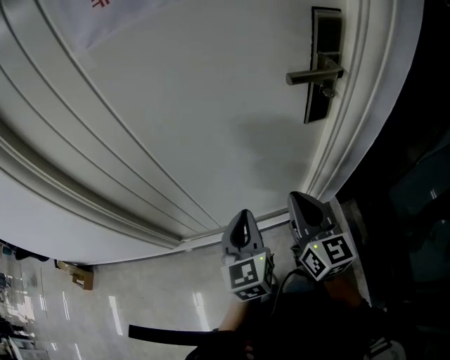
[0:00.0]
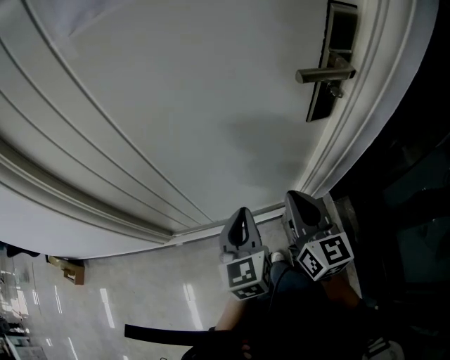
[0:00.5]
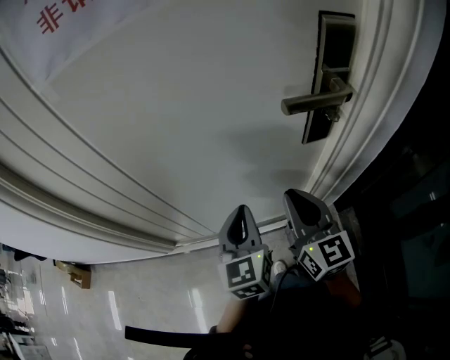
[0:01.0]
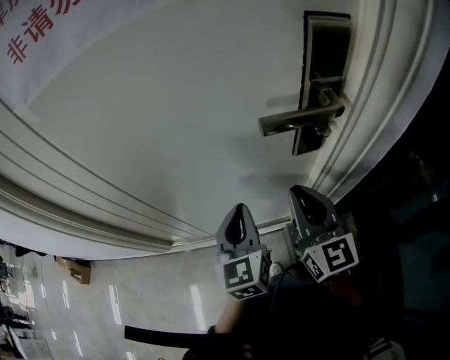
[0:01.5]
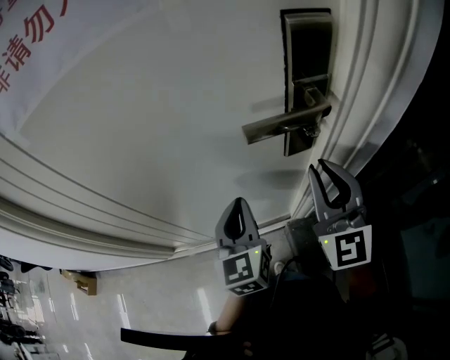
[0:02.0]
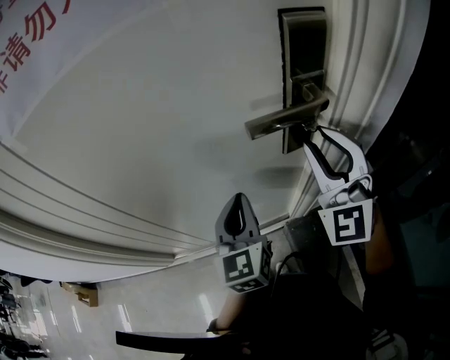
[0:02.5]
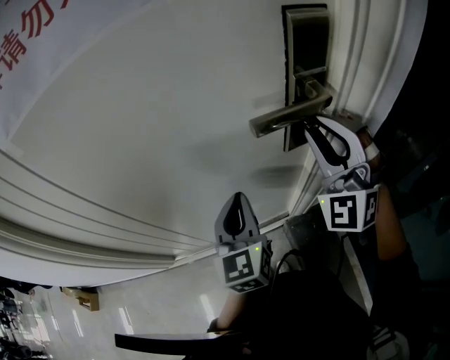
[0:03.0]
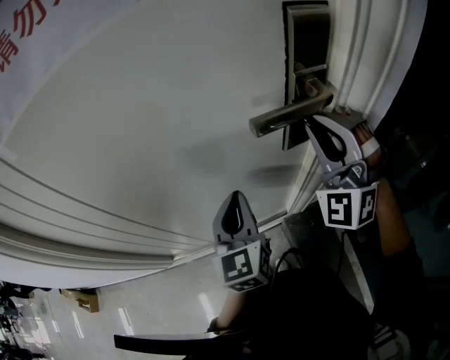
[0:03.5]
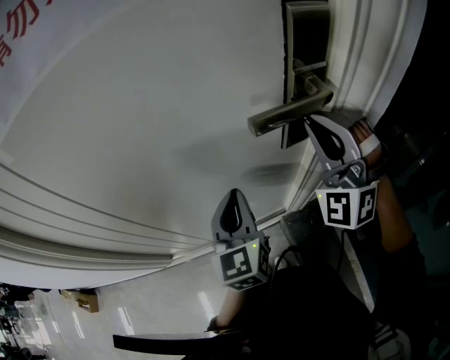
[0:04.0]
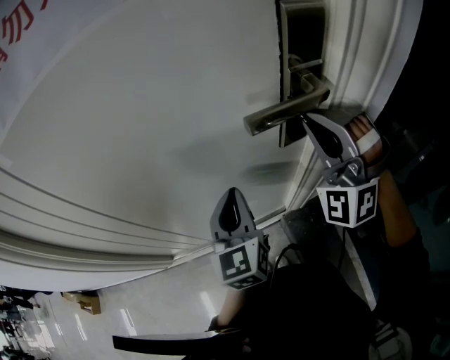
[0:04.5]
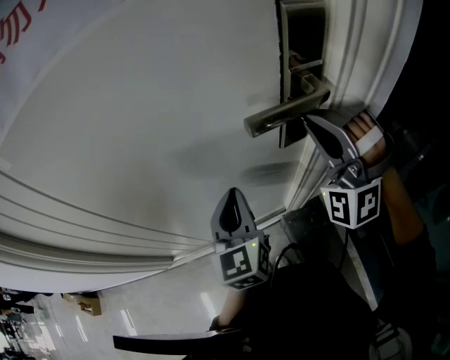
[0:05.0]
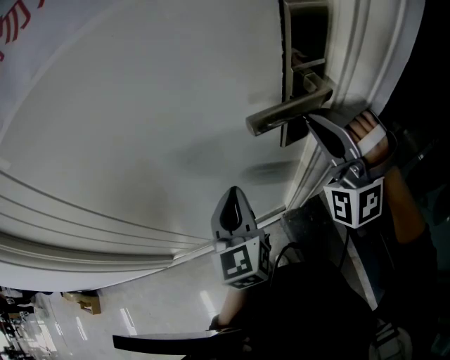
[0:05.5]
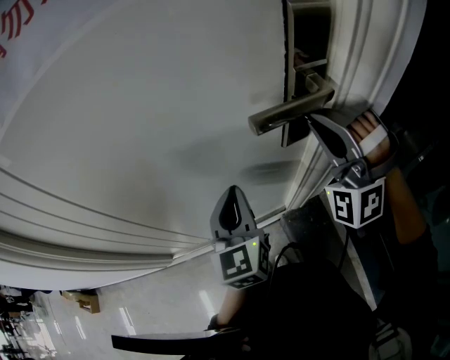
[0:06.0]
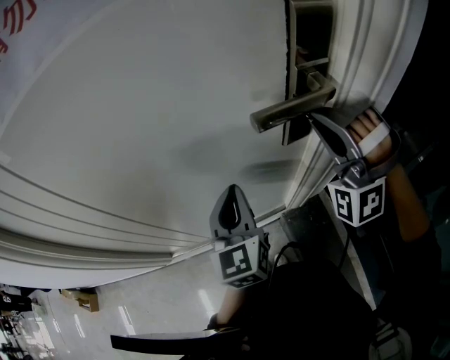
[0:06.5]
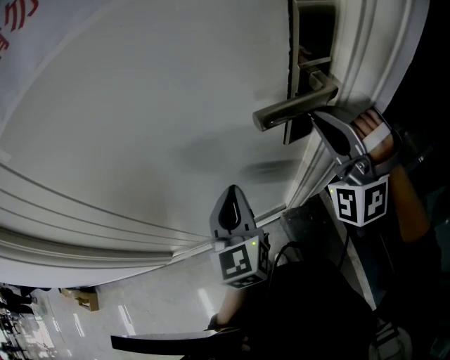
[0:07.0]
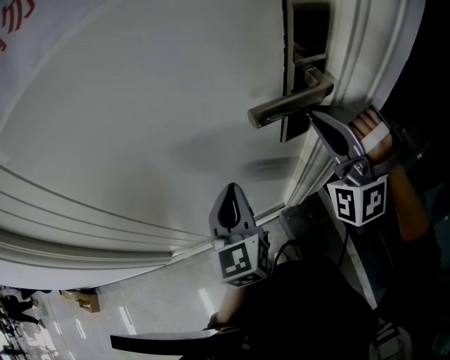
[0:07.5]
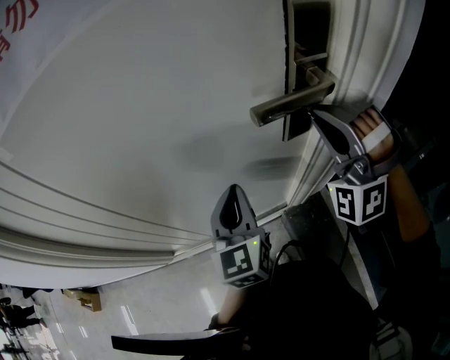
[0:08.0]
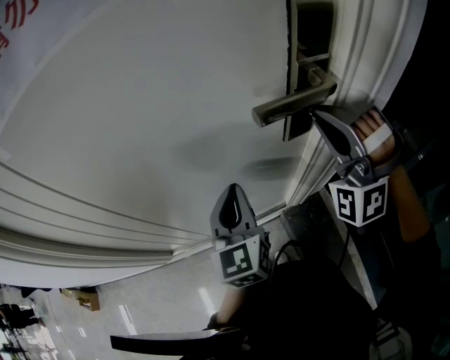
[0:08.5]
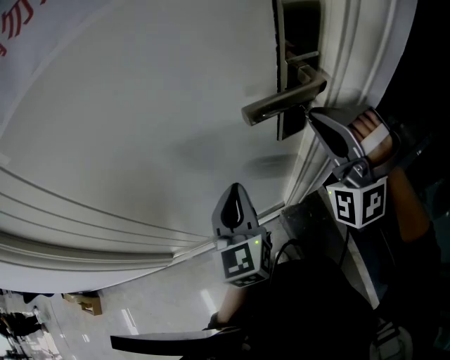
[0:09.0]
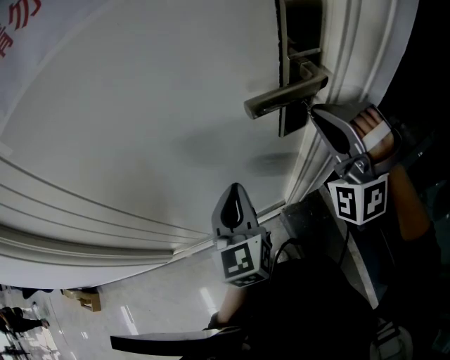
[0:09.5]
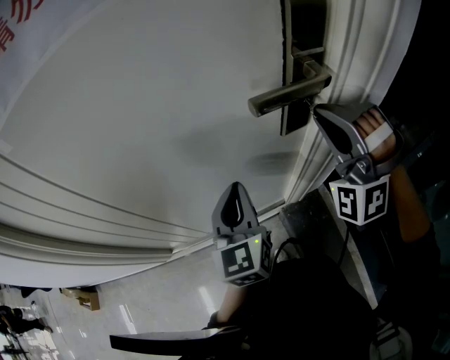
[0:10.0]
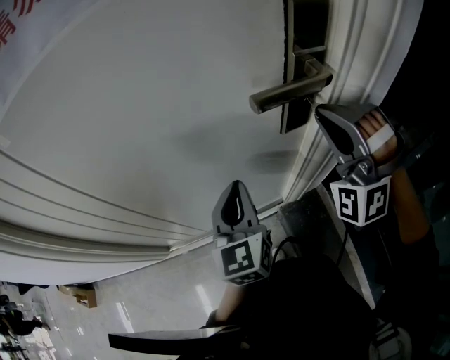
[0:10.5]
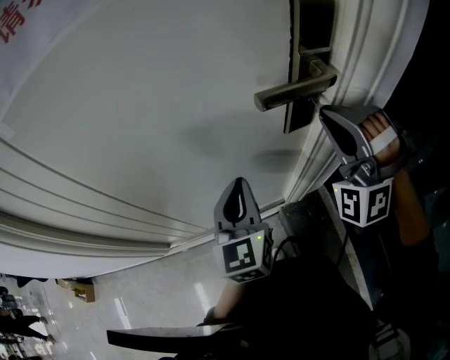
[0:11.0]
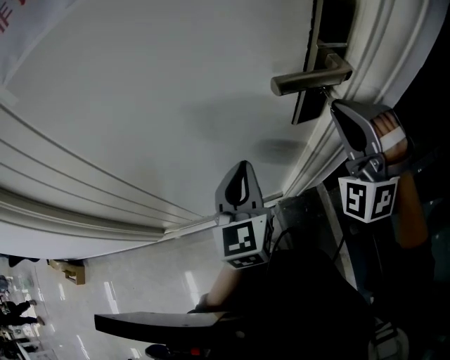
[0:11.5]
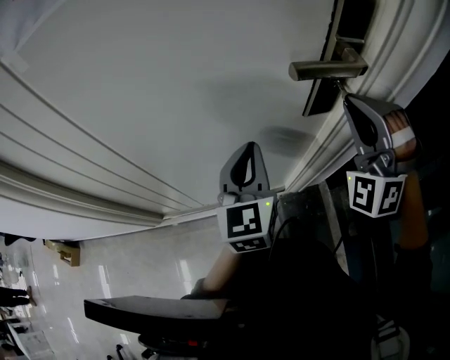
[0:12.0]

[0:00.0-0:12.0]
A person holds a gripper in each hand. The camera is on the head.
0:00.0 to 0:02.0: The left gripper goes some 15 cm forward and to the right. Meanwhile the right gripper travels to the right, forward and upward by approximately 20 cm, and swivels some 30 degrees.
0:02.0 to 0:04.0: The right gripper moves forward, about 5 cm, and twists roughly 60 degrees counterclockwise, seen from behind.
0:04.0 to 0:06.0: The grippers move only a little.
0:06.0 to 0:08.0: The grippers move only a little.
0:08.0 to 0:10.0: The two grippers keep their place.
0:10.0 to 0:12.0: The grippers make only small movements.

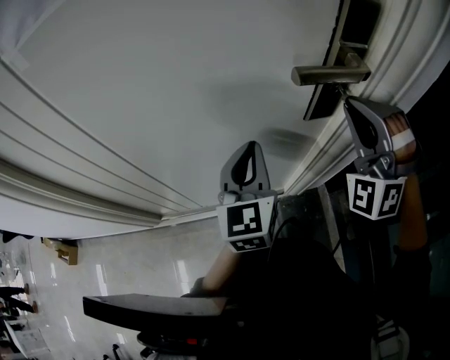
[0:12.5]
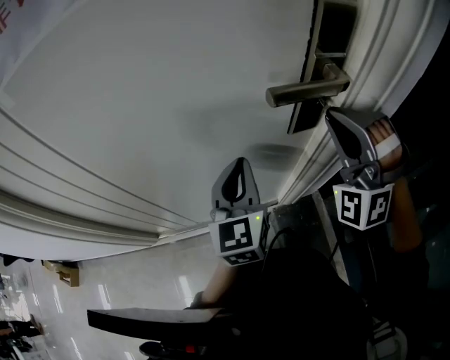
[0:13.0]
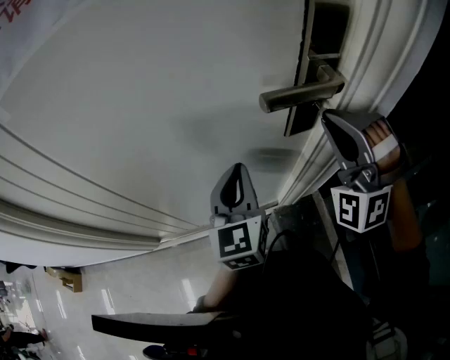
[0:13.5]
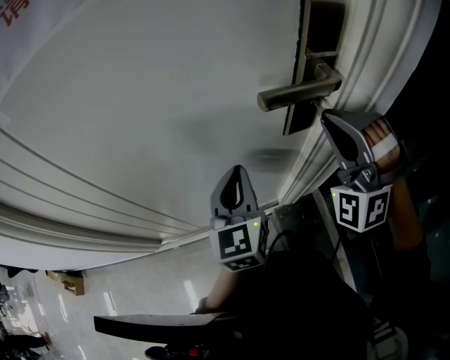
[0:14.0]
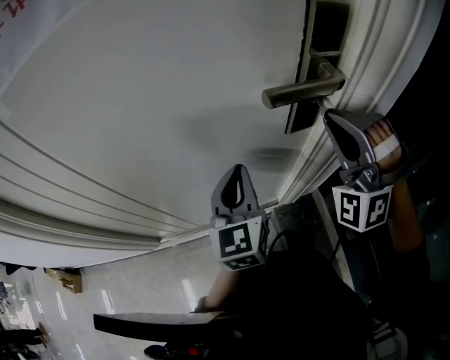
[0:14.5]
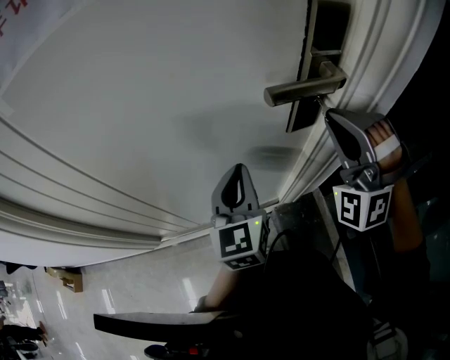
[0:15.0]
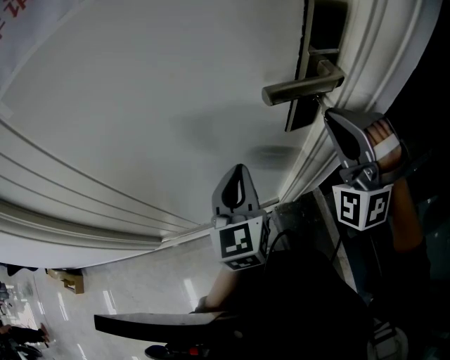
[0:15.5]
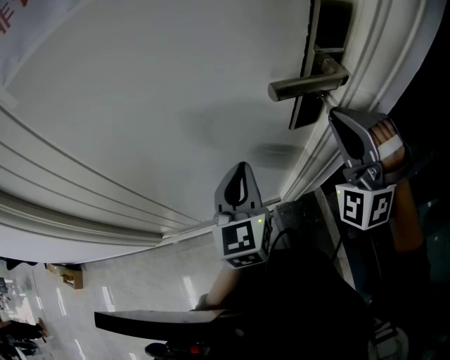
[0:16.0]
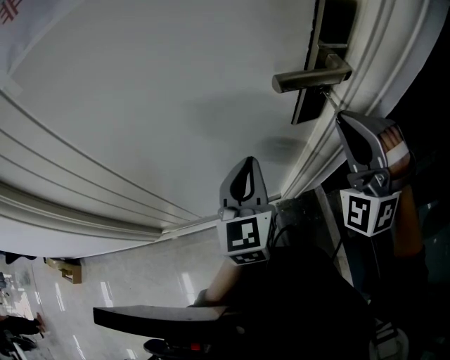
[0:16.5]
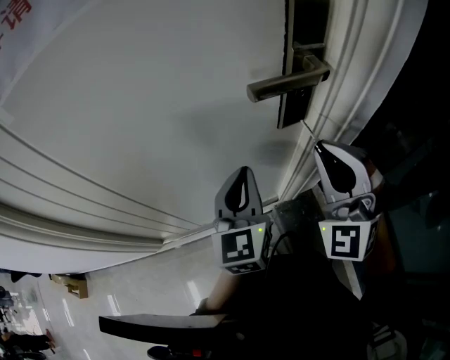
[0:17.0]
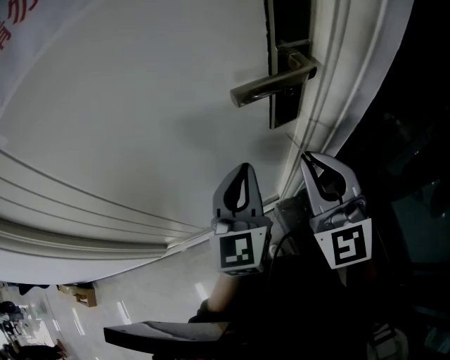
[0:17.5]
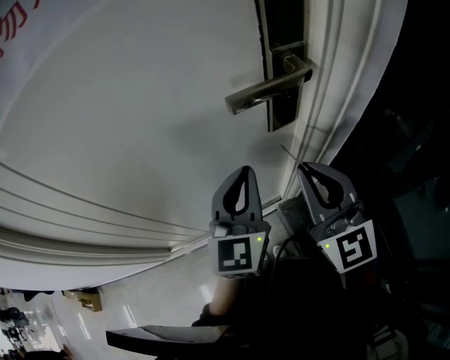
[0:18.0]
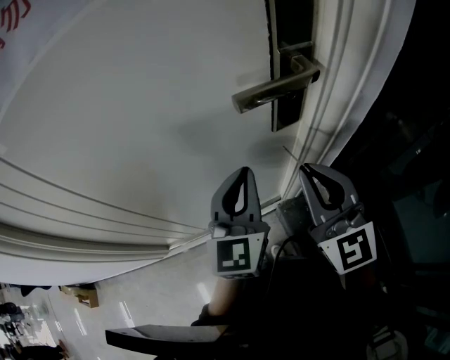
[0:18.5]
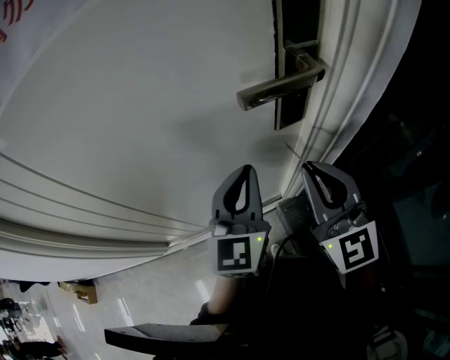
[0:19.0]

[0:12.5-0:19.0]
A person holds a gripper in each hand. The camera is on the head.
0:12.5 to 0:14.5: The grippers move only a little.
0:14.5 to 0:17.0: The right gripper goes roughly 5 cm backward, and rotates some 30 degrees.
0:17.0 to 0:19.0: The right gripper rotates around the line of its fingers by approximately 40 degrees, clockwise from behind.

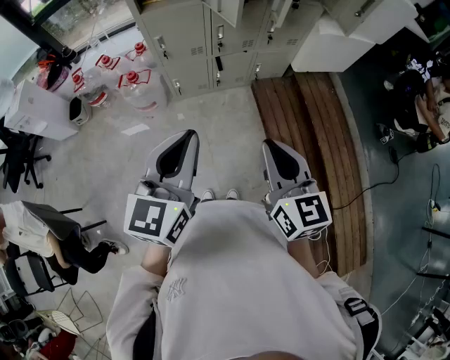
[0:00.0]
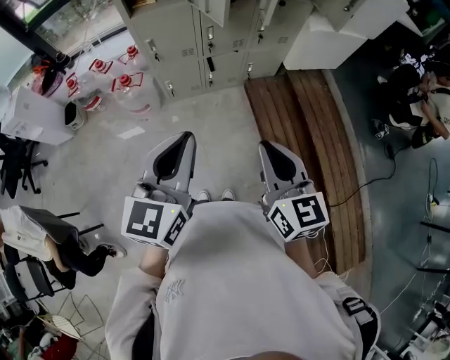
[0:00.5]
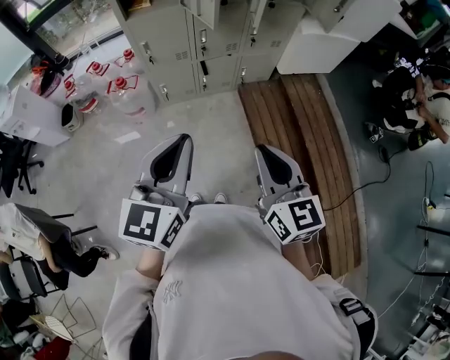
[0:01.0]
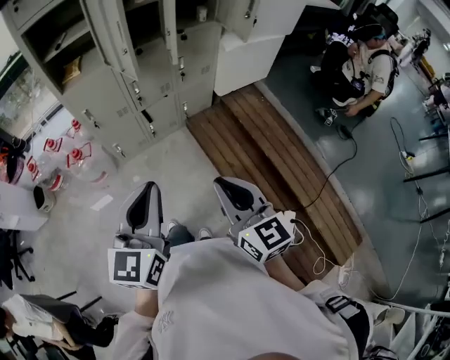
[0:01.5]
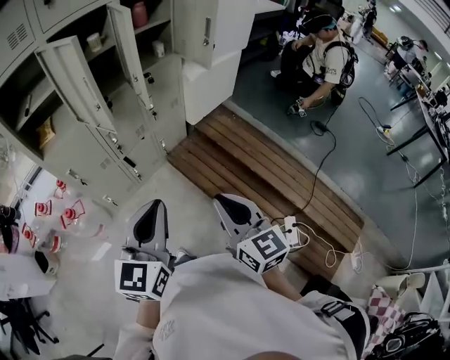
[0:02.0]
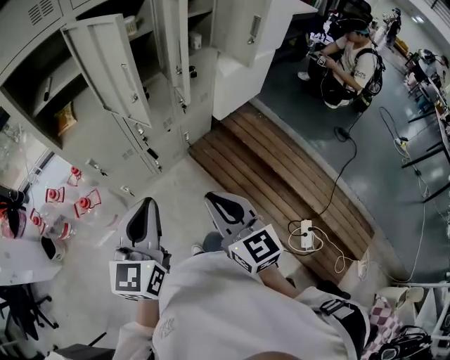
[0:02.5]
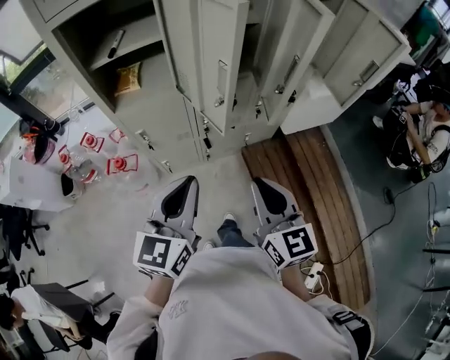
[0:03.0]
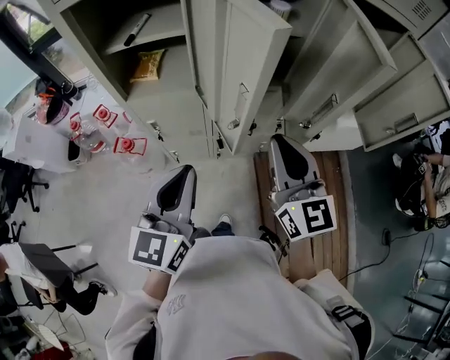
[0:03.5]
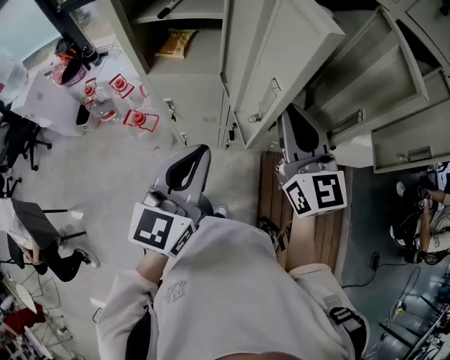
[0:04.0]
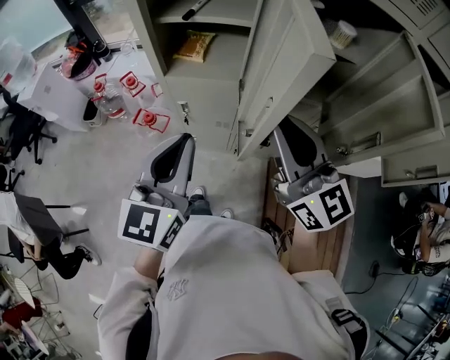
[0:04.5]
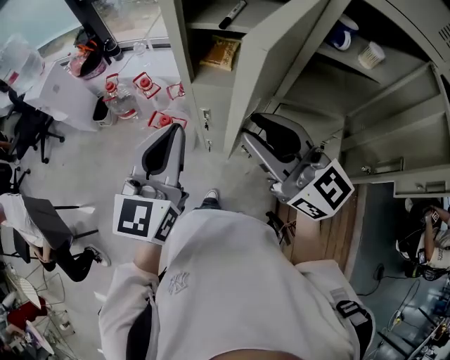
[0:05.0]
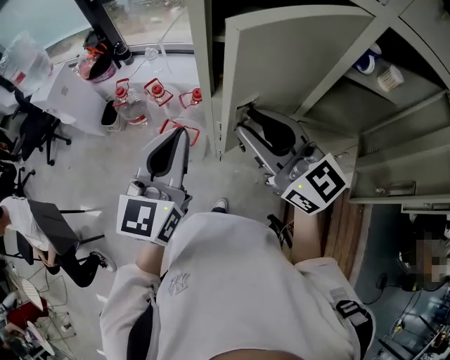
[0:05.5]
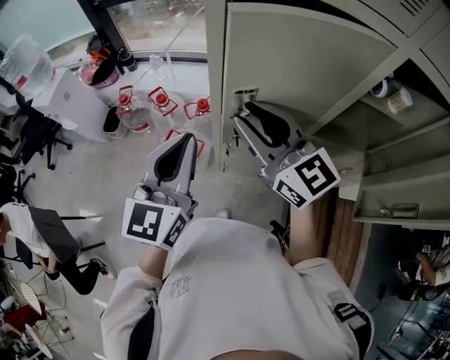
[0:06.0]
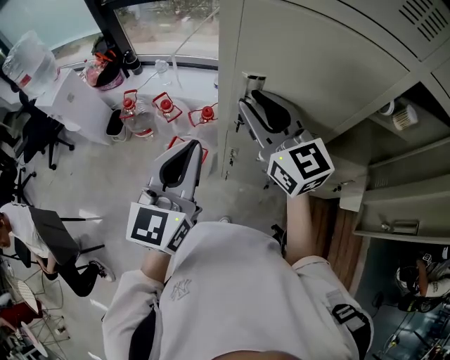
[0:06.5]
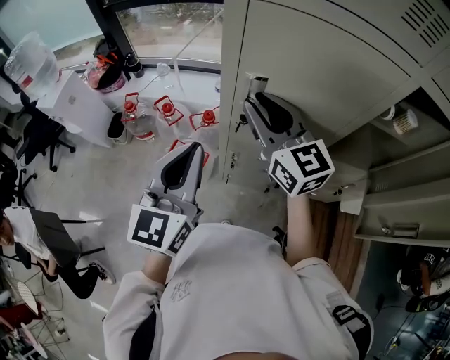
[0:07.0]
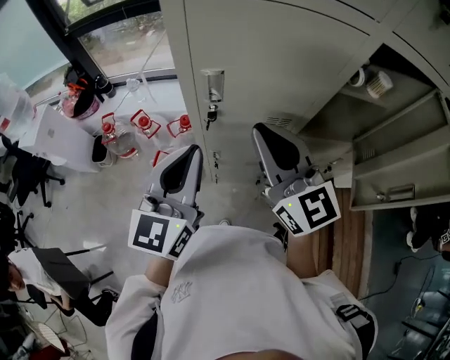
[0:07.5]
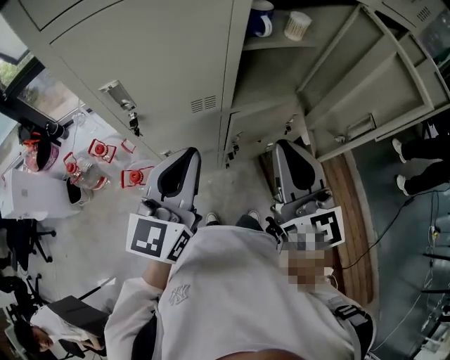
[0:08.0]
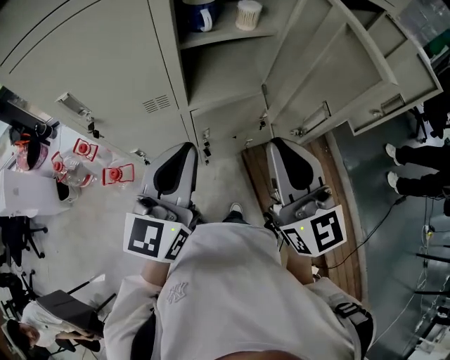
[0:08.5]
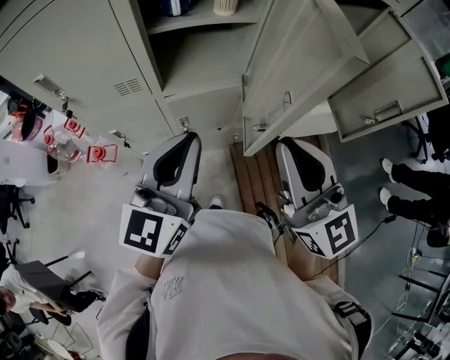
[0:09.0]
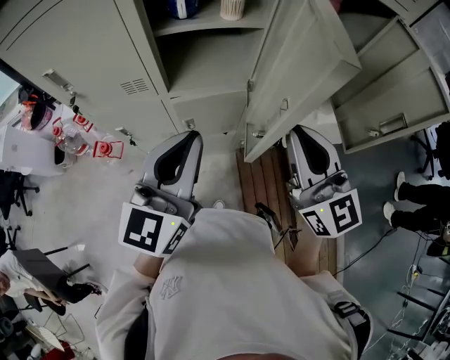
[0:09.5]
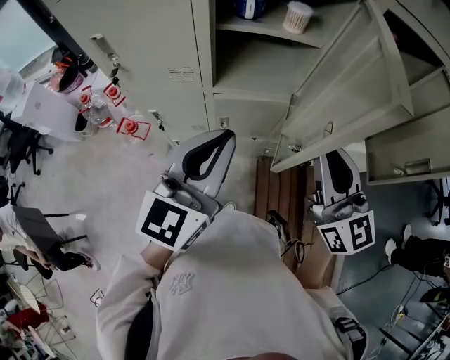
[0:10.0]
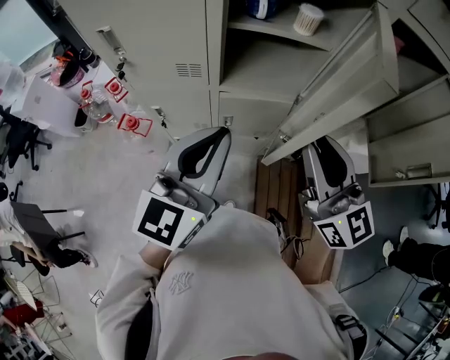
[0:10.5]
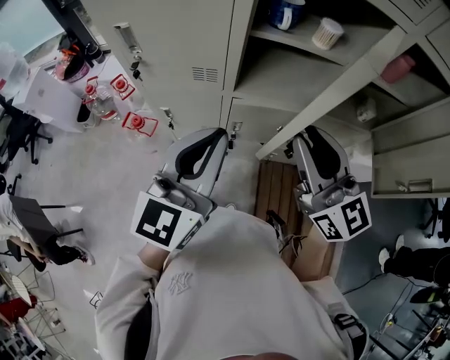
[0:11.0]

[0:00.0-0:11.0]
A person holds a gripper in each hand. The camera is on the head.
0:00.0 to 0:02.0: The left gripper heads to the right and forward, covering some 15 cm, and rotates approximately 20 degrees, while the right gripper is displaced to the right by approximately 10 cm, and swivels about 20 degrees.
0:02.0 to 0:03.5: The right gripper ends up approximately 40 cm from where it was, and changes its angle by about 30 degrees. The left gripper shifts by roughly 30 cm, and changes its angle by roughly 30 degrees.
0:03.5 to 0:05.5: The right gripper ends up approximately 30 cm from where it was, and changes its angle by some 40 degrees, while the left gripper moves roughly 25 cm.
0:05.5 to 0:07.5: Both grippers move forward, about 5 cm. The right gripper swivels roughly 30 degrees.
0:07.5 to 0:09.0: Both grippers move to the right, about 35 cm.
0:09.0 to 0:11.0: The right gripper shifts some 10 cm forward and to the left; the left gripper moves to the left, approximately 10 cm.
